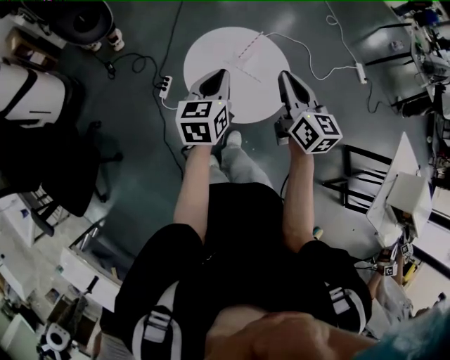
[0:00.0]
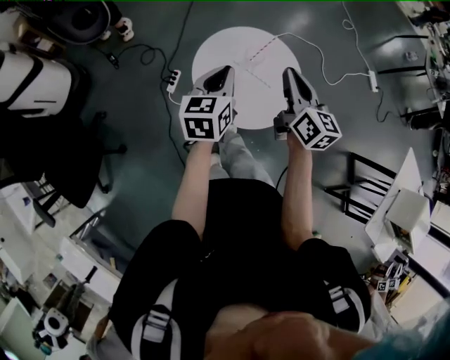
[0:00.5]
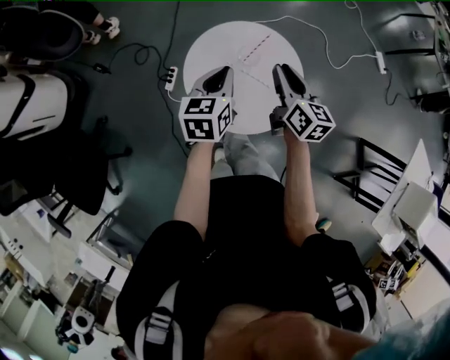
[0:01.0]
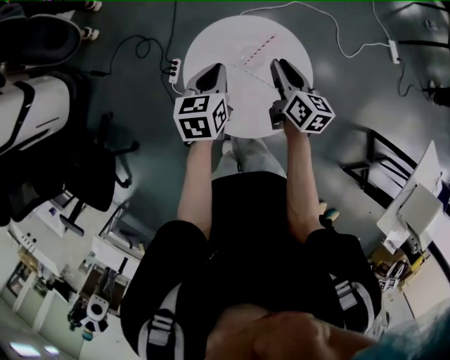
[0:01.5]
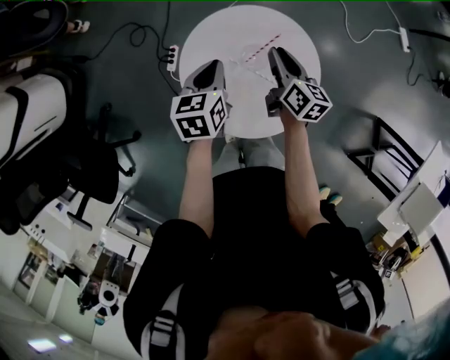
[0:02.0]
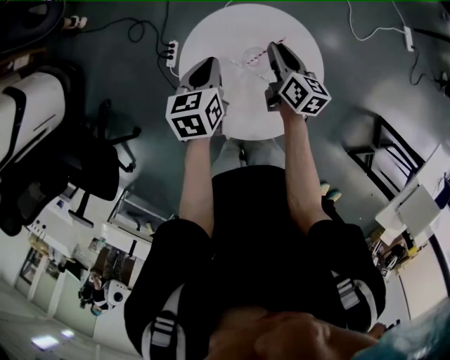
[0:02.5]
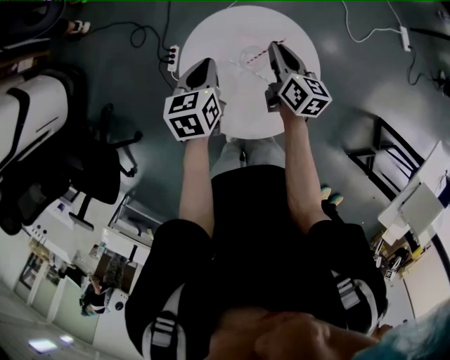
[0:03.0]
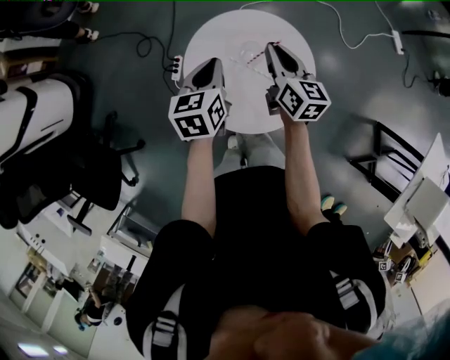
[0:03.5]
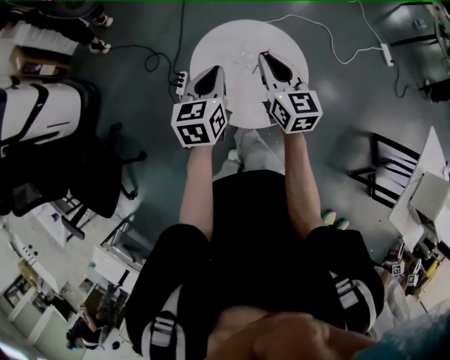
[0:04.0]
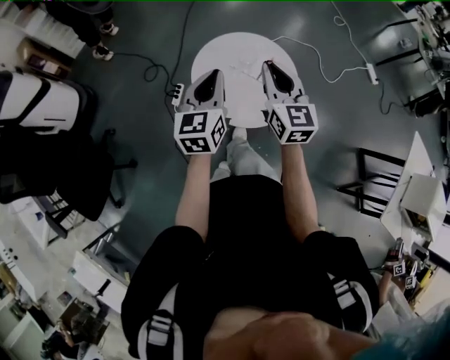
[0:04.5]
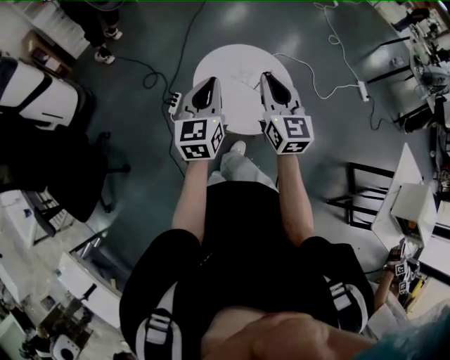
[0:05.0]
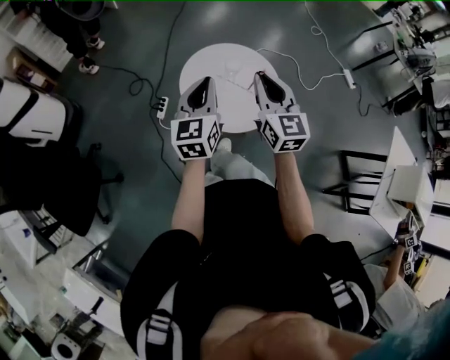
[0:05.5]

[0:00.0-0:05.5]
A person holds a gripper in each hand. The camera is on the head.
0:00.0 to 0:02.0: The left gripper heads forward and downward, covering about 25 cm, and changes its angle by some 20 degrees. Meanwhile the right gripper moves downward and forward, approximately 35 cm, and turns by about 30 degrees.
0:02.0 to 0:03.5: The two grippers go roughly 5 cm upward.
0:03.5 to 0:05.5: Both grippers travel together backward and upward, some 25 cm. The left gripper changes its angle by about 30 degrees. Meanwhile the right gripper swivels about 30 degrees.

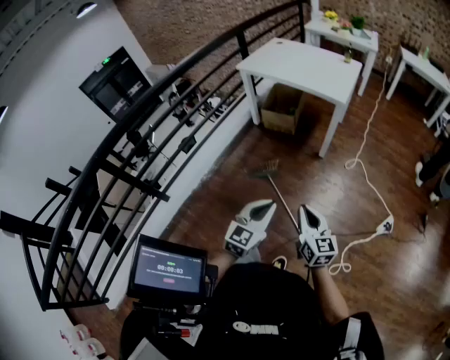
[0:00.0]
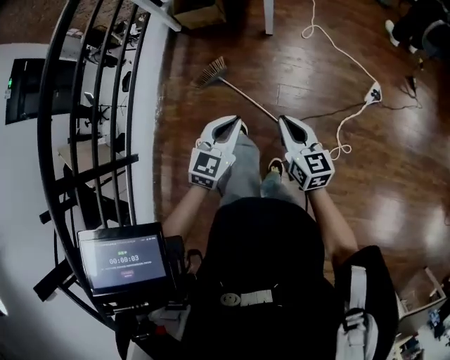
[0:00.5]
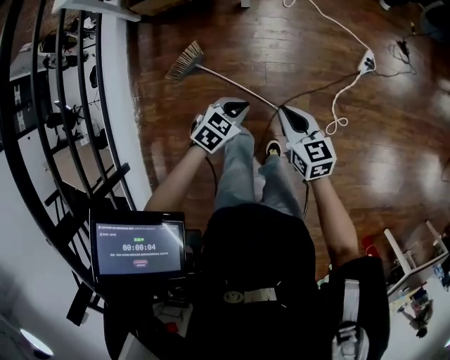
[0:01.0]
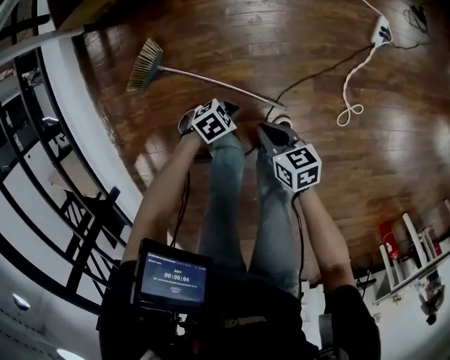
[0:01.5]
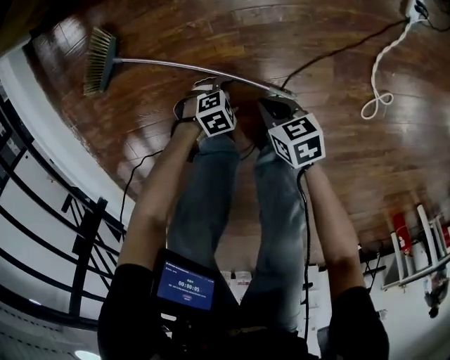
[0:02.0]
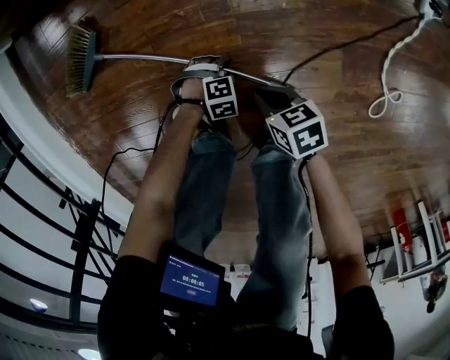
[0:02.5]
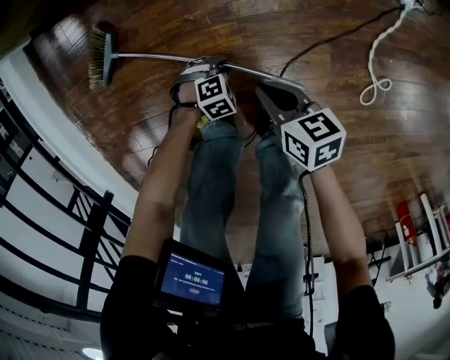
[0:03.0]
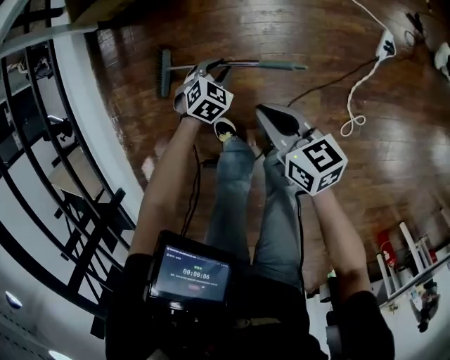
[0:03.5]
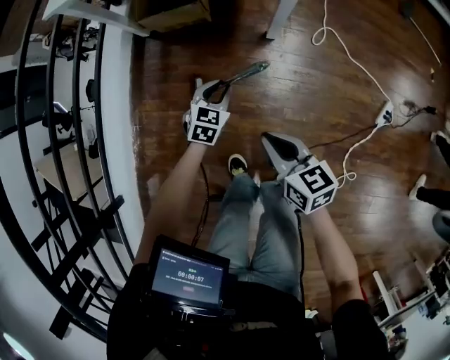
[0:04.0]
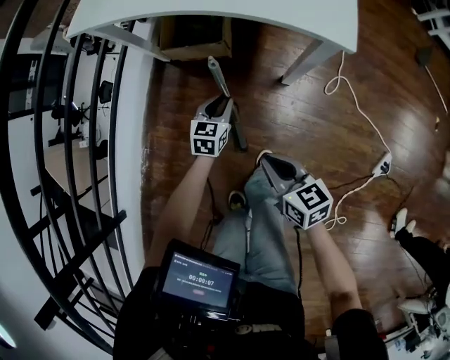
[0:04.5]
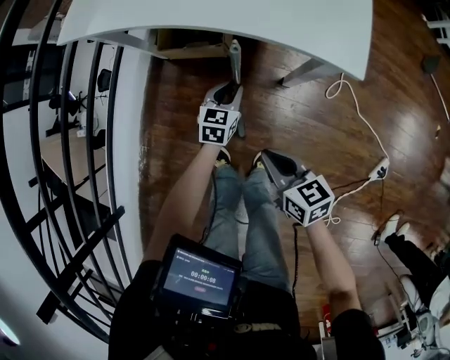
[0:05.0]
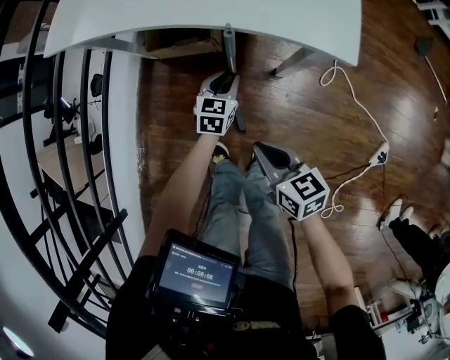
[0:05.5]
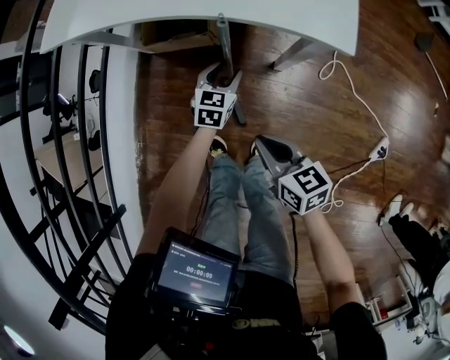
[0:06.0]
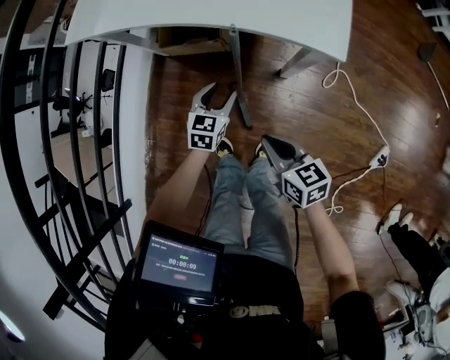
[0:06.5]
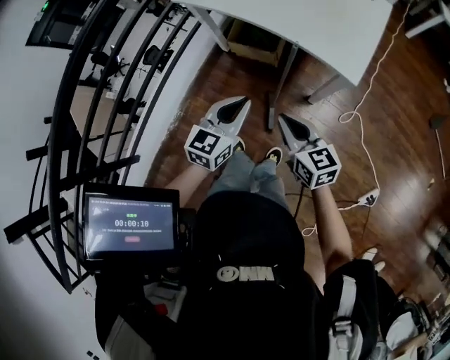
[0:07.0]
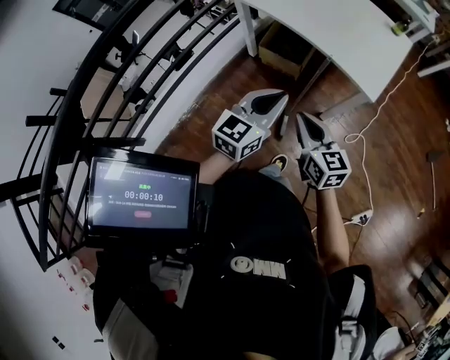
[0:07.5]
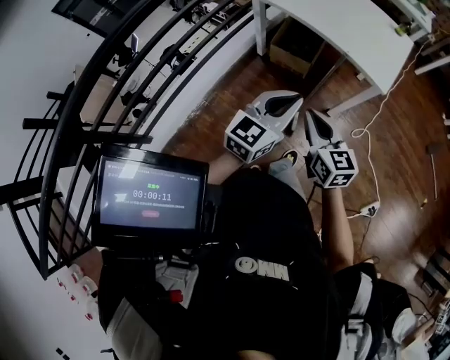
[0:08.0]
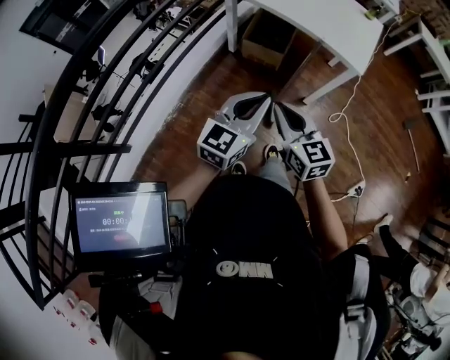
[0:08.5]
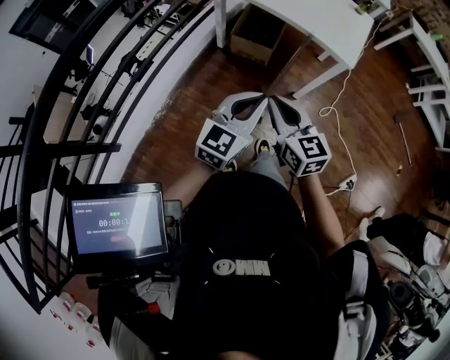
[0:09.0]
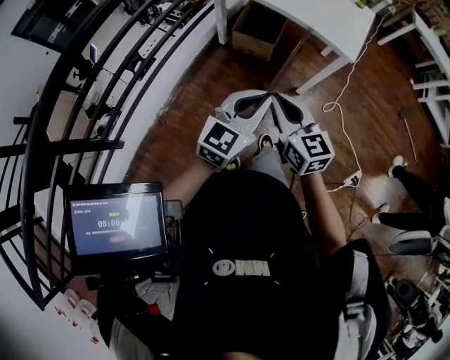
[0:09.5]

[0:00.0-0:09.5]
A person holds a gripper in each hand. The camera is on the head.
0:00.0 to 0:02.0: Both grippers travel together downward, some 70 cm. The right gripper tips its fingers downward by some 30 degrees. Meanwhile the left gripper tilts its fingers roughly 40 degrees downward, and opens its fingers.
0:02.0 to 0:04.0: The grippers both shift upward by about 40 cm. The left gripper turns by approximately 70 degrees, and closes up, while the right gripper swivels approximately 30 degrees.
0:04.0 to 0:05.5: The two grippers go approximately 20 cm forward.
0:05.5 to 0:07.5: The left gripper is displaced upward and backward by about 50 cm, rotates approximately 30 degrees, and opens, then closes again; the right gripper shifts roughly 25 cm upward, and swivels about 30 degrees.
0:07.5 to 0:09.5: The two grippers go some 15 cm backward and to the left.

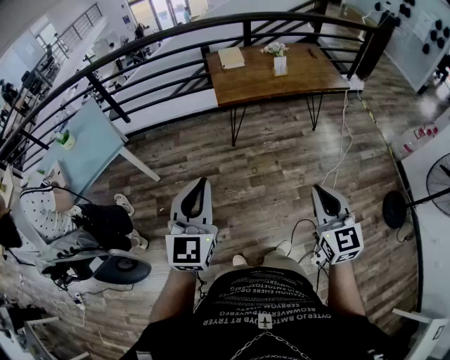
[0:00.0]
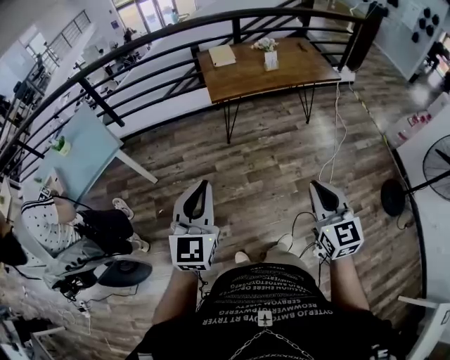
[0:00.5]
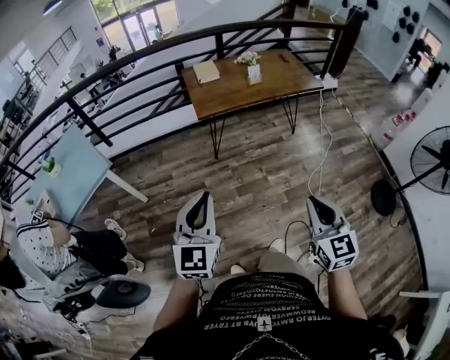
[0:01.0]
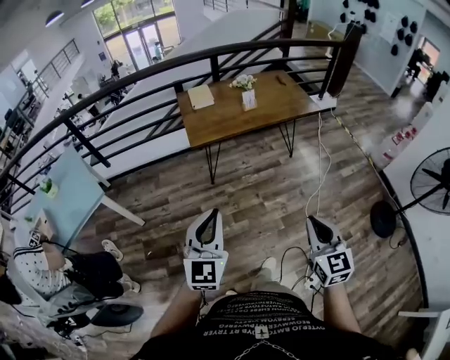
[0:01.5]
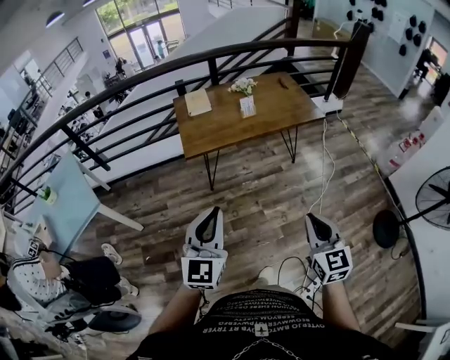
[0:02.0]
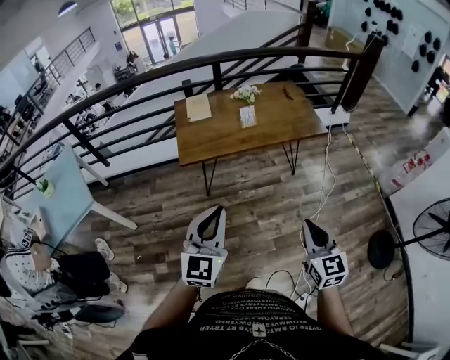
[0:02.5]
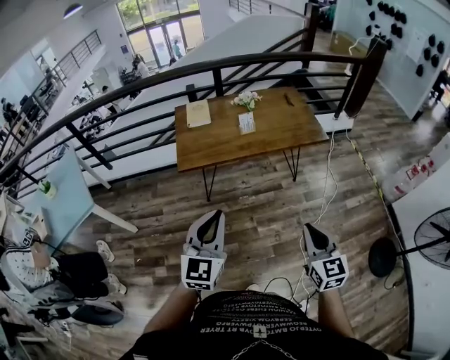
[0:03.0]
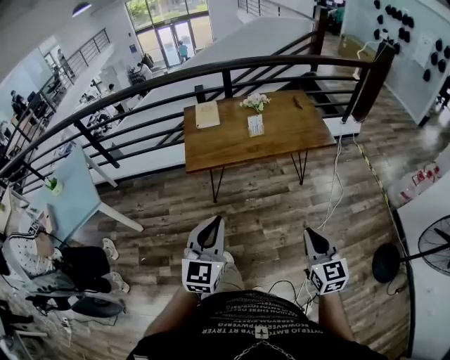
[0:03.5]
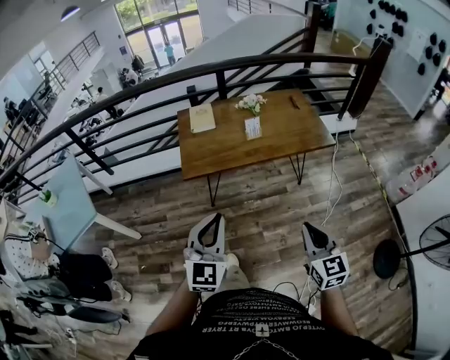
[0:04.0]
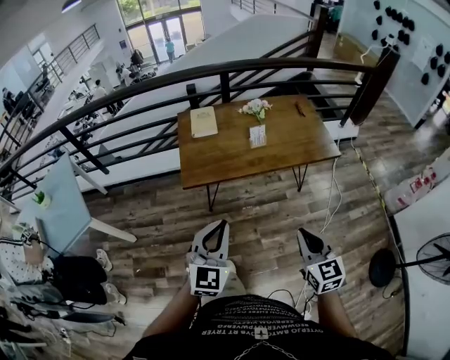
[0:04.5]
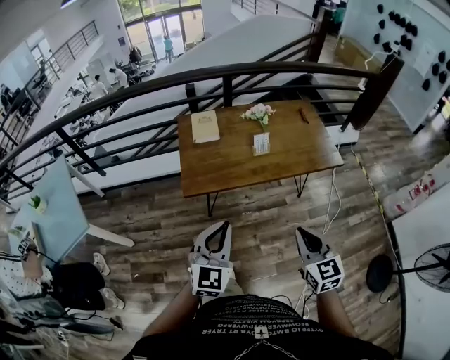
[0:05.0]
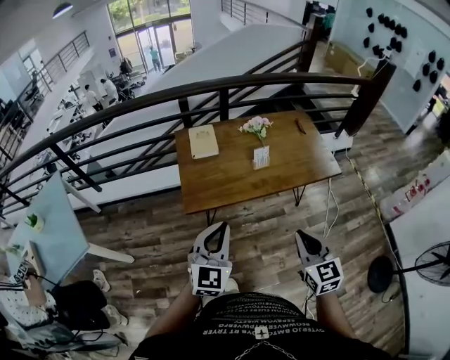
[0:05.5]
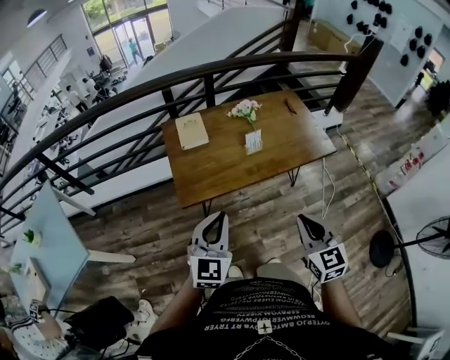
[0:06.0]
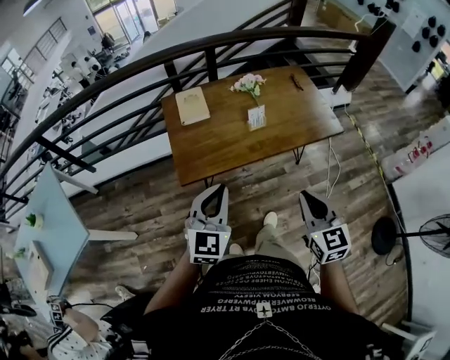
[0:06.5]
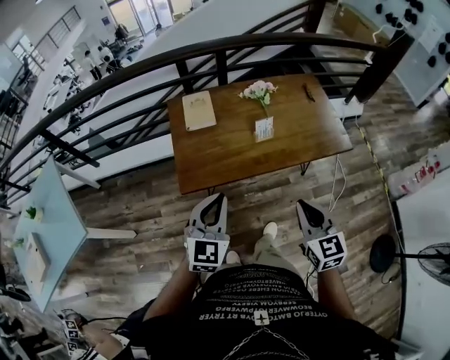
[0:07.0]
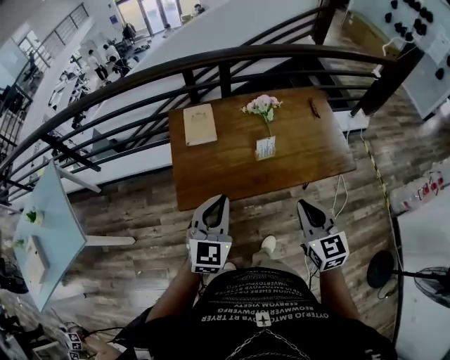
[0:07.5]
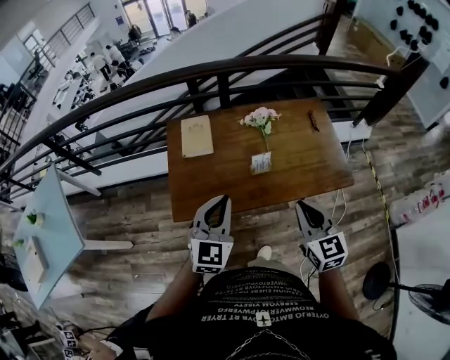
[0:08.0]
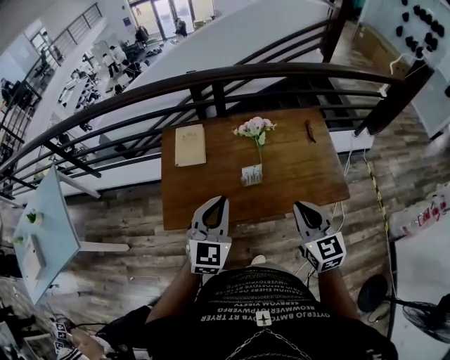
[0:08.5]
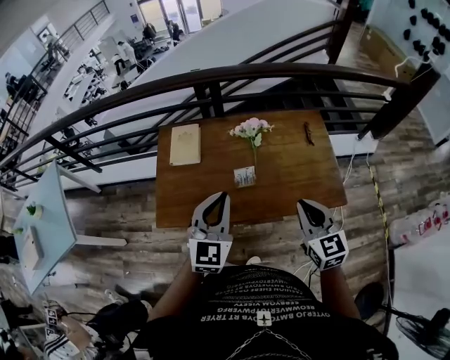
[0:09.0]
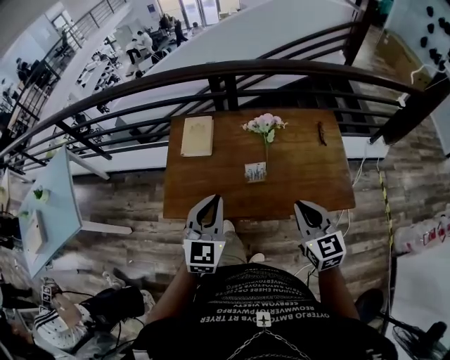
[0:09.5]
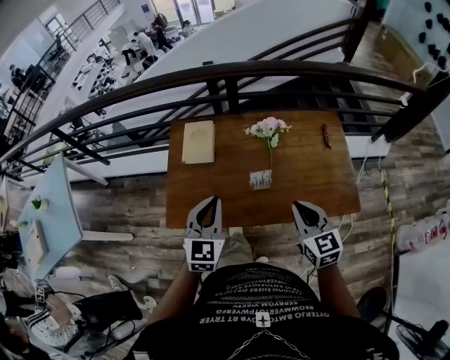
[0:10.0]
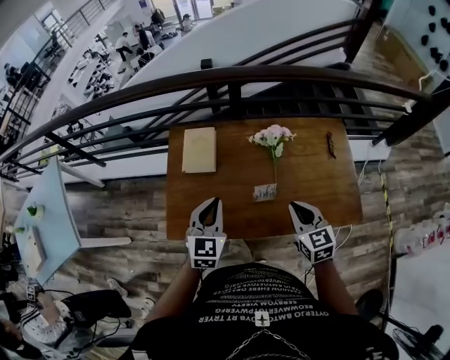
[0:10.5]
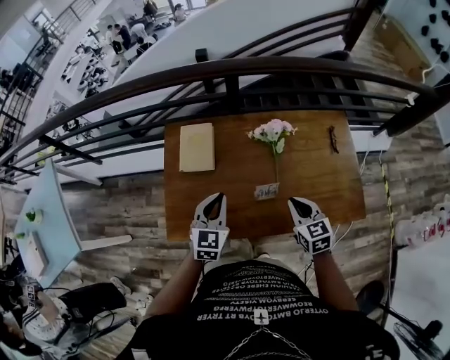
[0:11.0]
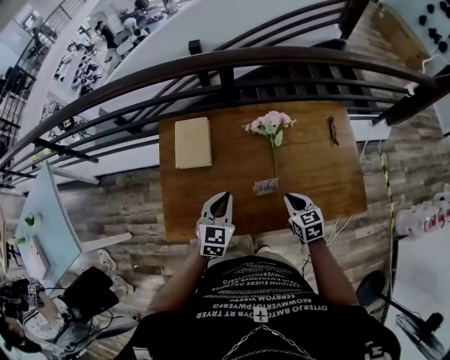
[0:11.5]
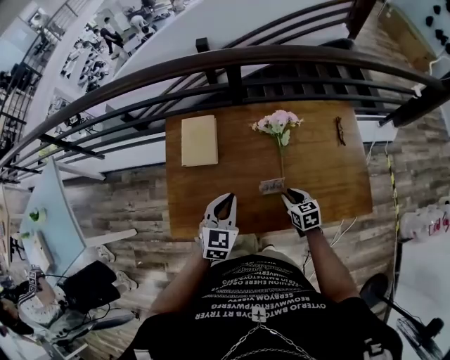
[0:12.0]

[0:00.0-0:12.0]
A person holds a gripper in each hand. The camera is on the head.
0:00.0 to 0:02.0: The two grippers go approximately 20 cm forward and to the right.
0:02.0 to 0:04.0: The right gripper moves forward, roughly 15 cm. Meanwhile the left gripper shifts roughly 15 cm forward and to the right.
0:04.0 to 0:06.0: The right gripper heads forward and to the left, covering roughly 20 cm. The left gripper heads forward, covering approximately 20 cm.
0:06.0 to 0:08.0: The two grippers go some 25 cm forward.
0:08.0 to 0:10.0: The left gripper shifts roughly 10 cm forward, and moves some 10 cm to the right and comes back, while the right gripper moves forward, downward and to the right, roughly 15 cm.
0:10.0 to 0:12.0: The right gripper travels downward and forward by approximately 30 cm, swivels some 30 degrees, and opens its fingers. Meanwhile the left gripper is displaced downward and forward by roughly 15 cm.
